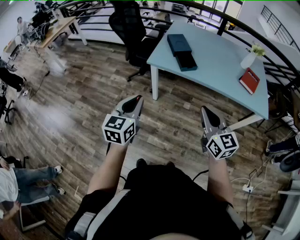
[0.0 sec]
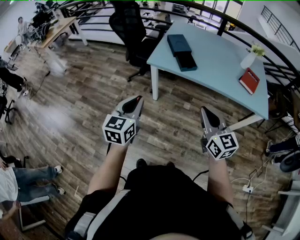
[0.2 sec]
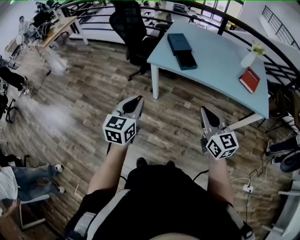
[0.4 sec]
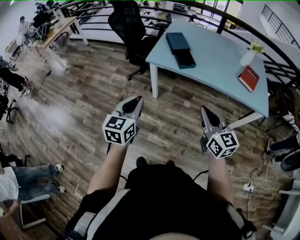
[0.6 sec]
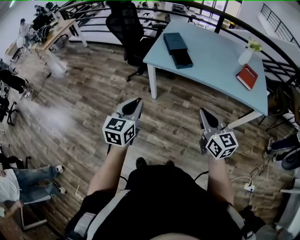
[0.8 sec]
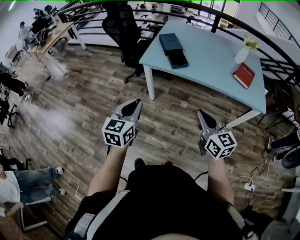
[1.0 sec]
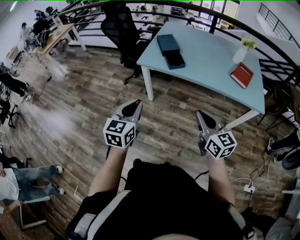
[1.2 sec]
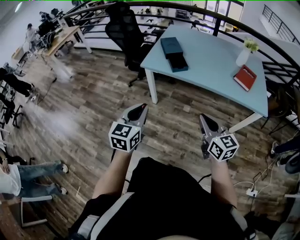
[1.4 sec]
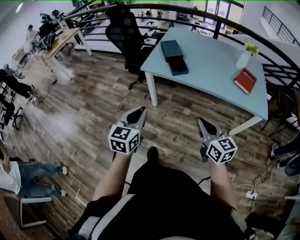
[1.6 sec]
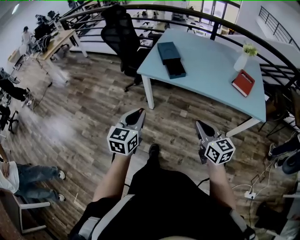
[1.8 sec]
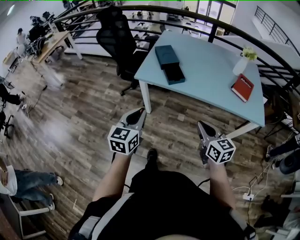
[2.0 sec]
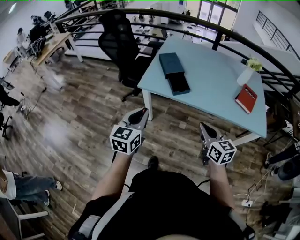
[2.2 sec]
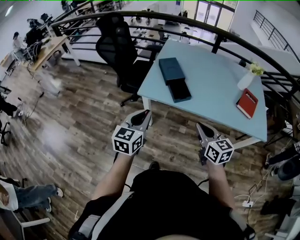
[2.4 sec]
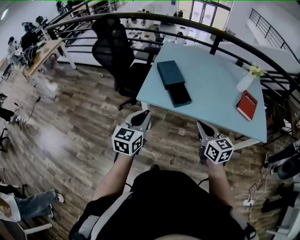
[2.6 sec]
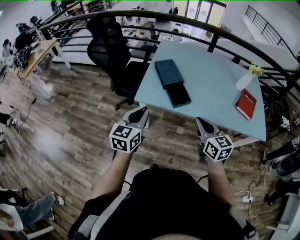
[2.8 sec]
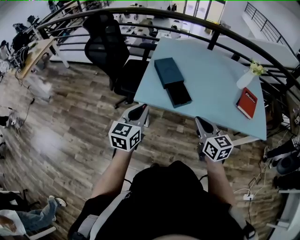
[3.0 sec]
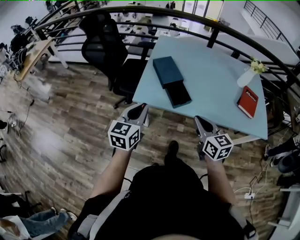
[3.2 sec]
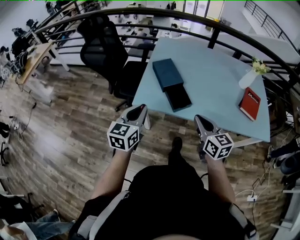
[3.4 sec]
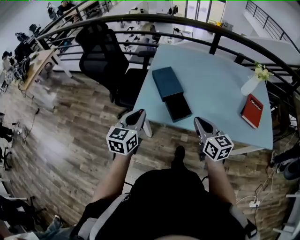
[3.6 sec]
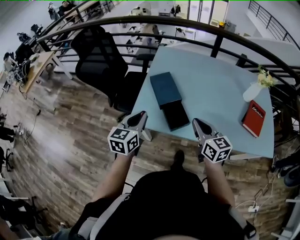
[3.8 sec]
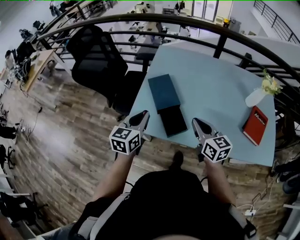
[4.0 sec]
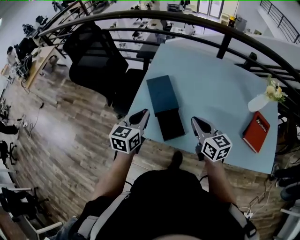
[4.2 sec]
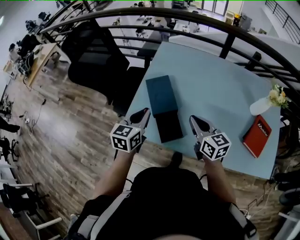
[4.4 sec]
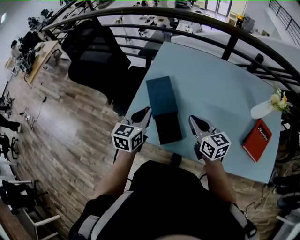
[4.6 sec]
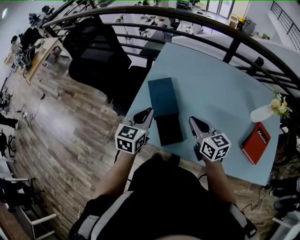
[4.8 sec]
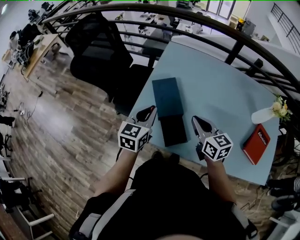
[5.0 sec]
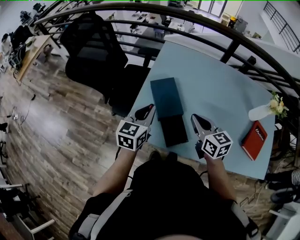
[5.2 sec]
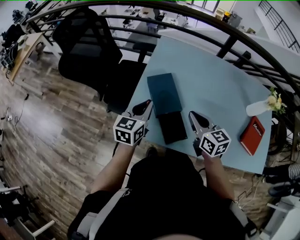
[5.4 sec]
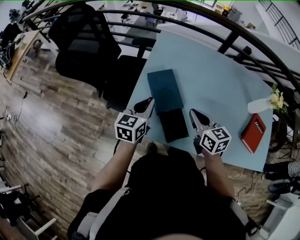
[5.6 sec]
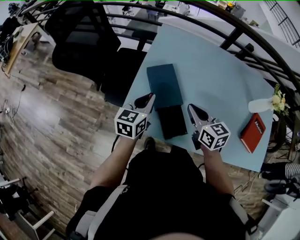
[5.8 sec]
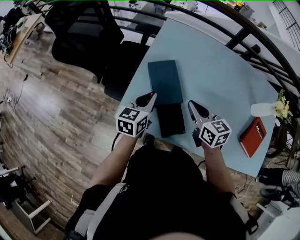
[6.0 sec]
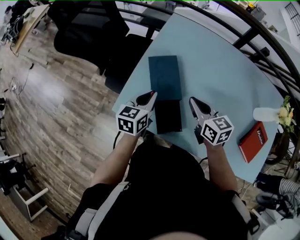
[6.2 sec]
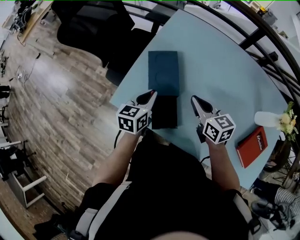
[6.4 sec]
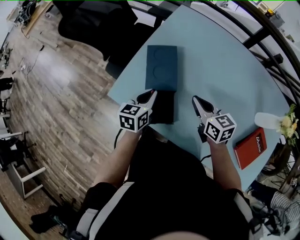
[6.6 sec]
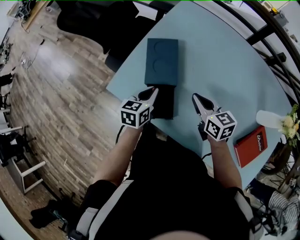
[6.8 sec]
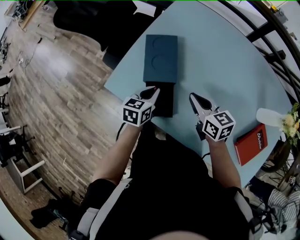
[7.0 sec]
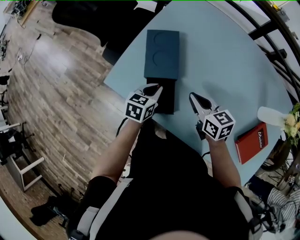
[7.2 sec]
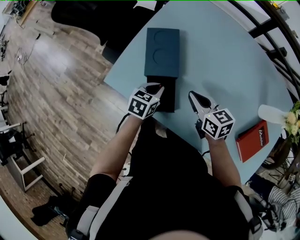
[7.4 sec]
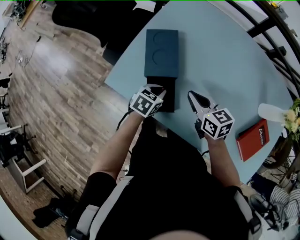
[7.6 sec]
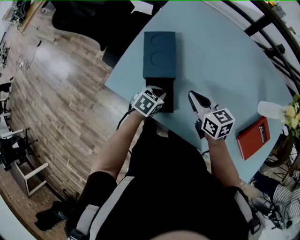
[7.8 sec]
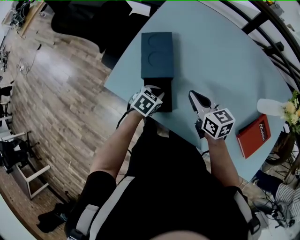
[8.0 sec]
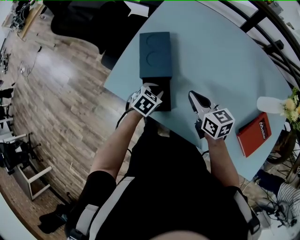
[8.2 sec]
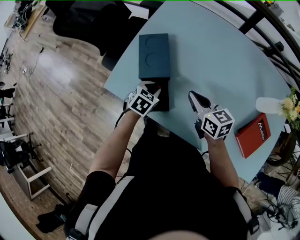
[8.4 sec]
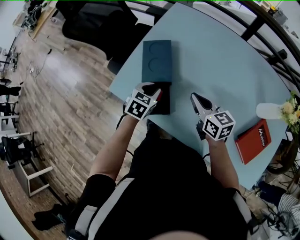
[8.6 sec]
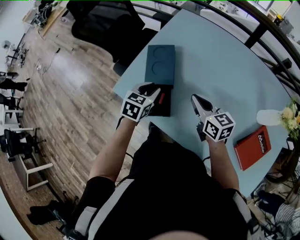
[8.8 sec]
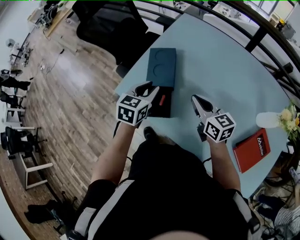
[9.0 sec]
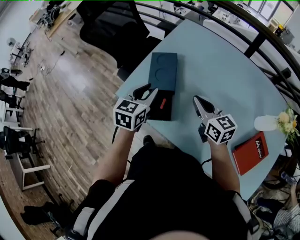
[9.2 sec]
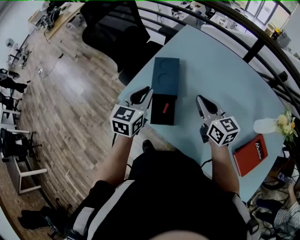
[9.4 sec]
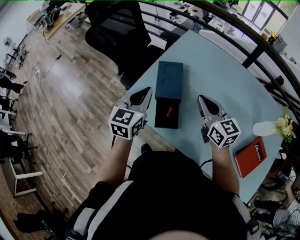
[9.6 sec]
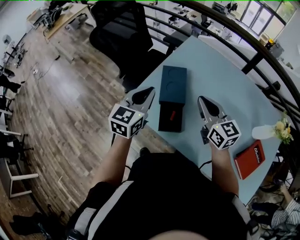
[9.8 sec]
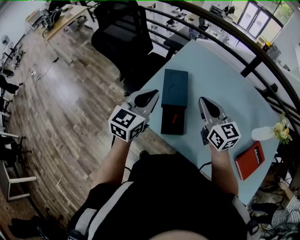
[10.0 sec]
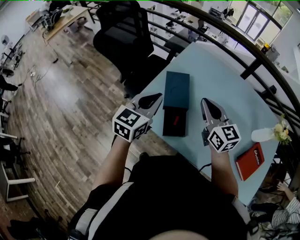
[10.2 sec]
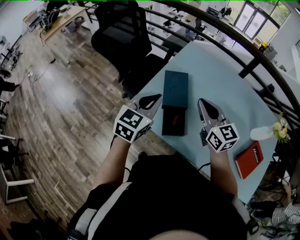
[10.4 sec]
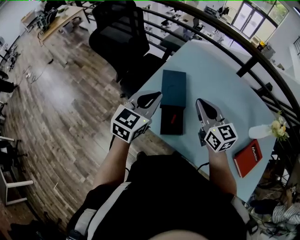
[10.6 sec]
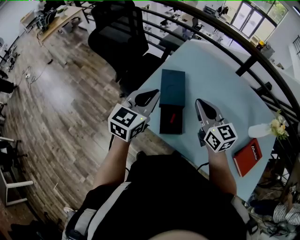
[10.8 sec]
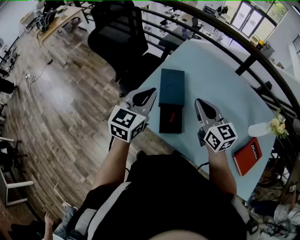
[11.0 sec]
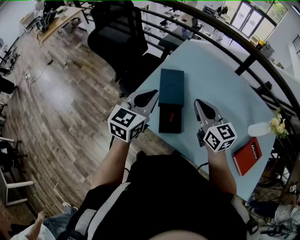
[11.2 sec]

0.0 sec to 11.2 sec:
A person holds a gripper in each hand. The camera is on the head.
0.0 sec to 1.6 sec: Both grippers move to the right, roughly 10 cm.
1.6 sec to 3.2 sec: Both grippers move forward, some 30 cm.
3.2 sec to 4.8 sec: The left gripper moves forward and to the right, roughly 25 cm. The right gripper shifts approximately 25 cm forward.
4.8 sec to 6.4 sec: The left gripper is displaced downward by about 10 cm, while the right gripper goes about 10 cm forward and downward.
6.4 sec to 8.0 sec: The right gripper shifts by roughly 5 cm. The left gripper goes about 15 cm downward, to the right and backward, and turns by some 40 degrees.
8.0 sec to 9.6 sec: The right gripper shifts roughly 15 cm upward, and rotates approximately 20 degrees, while the left gripper shifts some 25 cm upward, and angles its fingers upward, by roughly 40 degrees.
9.6 sec to 11.2 sec: The right gripper heads to the left, covering some 5 cm.

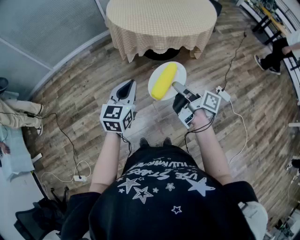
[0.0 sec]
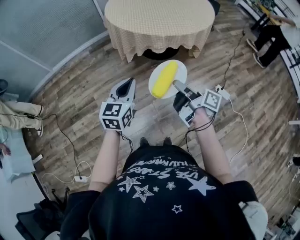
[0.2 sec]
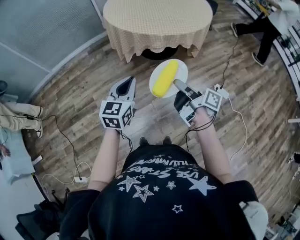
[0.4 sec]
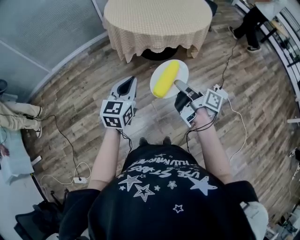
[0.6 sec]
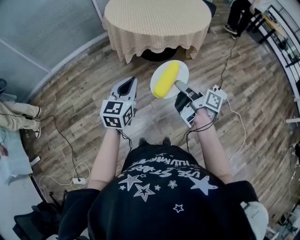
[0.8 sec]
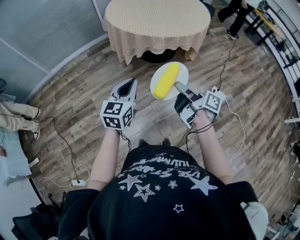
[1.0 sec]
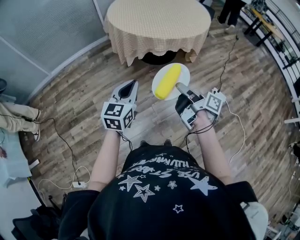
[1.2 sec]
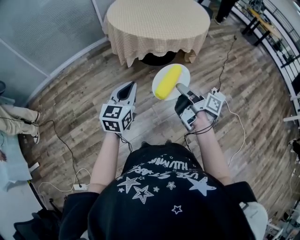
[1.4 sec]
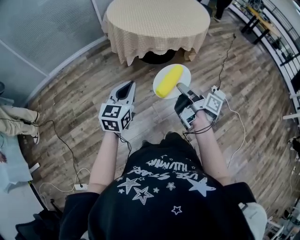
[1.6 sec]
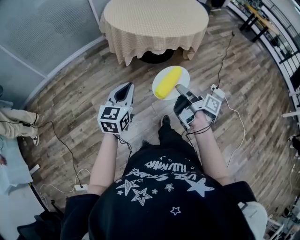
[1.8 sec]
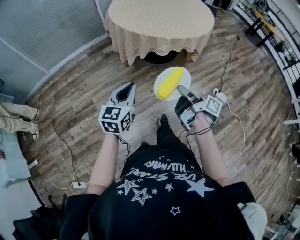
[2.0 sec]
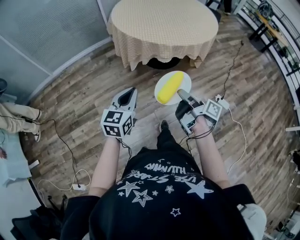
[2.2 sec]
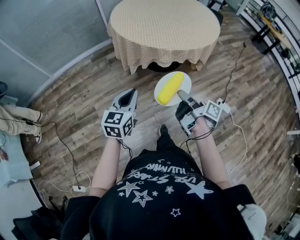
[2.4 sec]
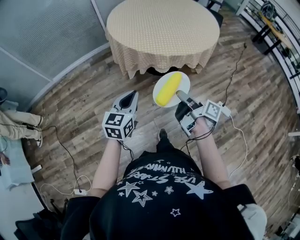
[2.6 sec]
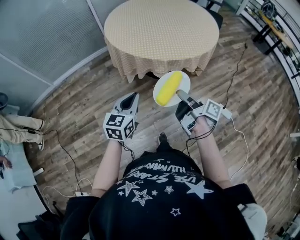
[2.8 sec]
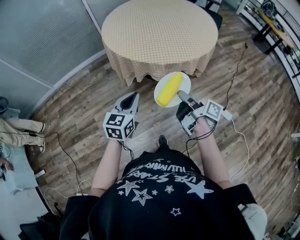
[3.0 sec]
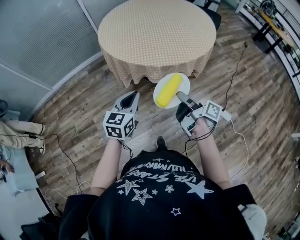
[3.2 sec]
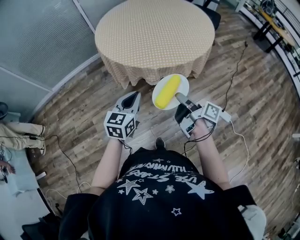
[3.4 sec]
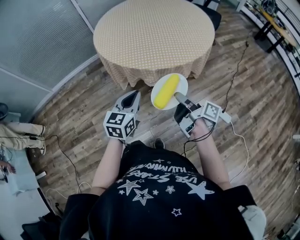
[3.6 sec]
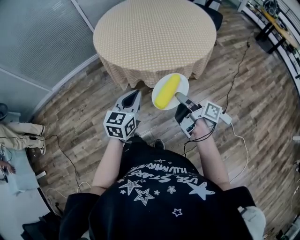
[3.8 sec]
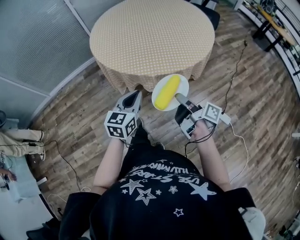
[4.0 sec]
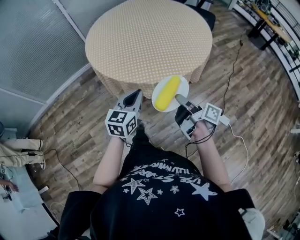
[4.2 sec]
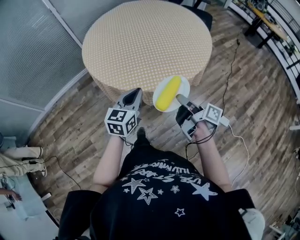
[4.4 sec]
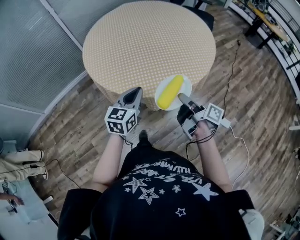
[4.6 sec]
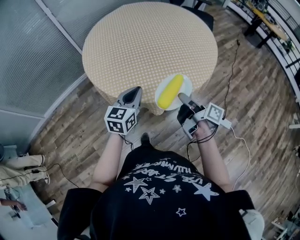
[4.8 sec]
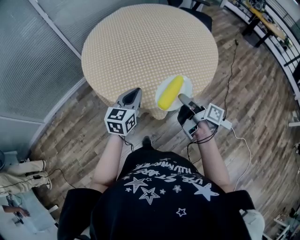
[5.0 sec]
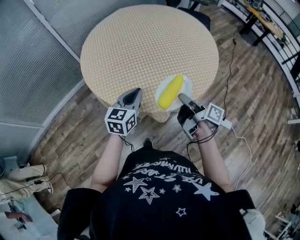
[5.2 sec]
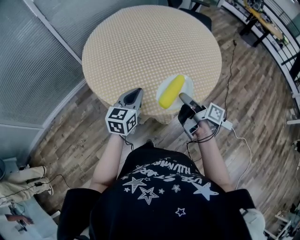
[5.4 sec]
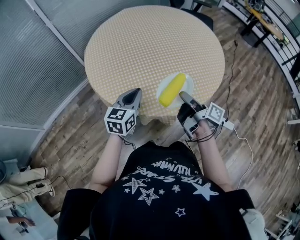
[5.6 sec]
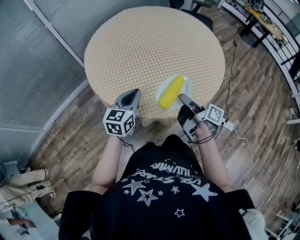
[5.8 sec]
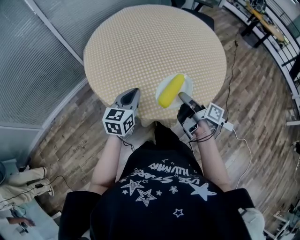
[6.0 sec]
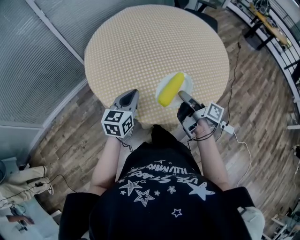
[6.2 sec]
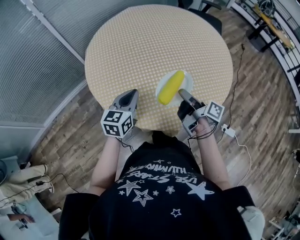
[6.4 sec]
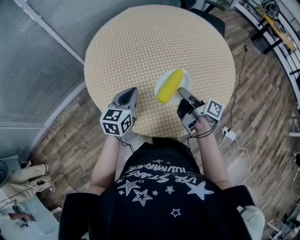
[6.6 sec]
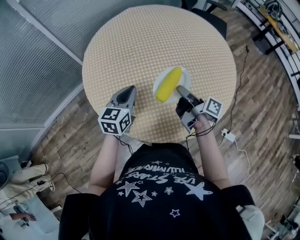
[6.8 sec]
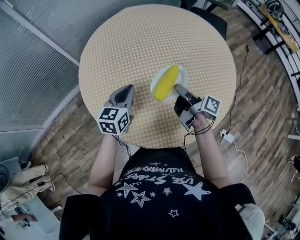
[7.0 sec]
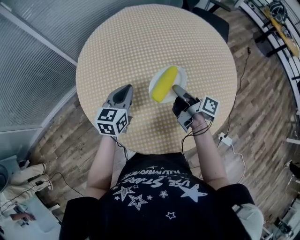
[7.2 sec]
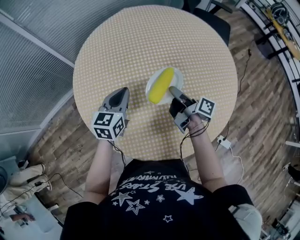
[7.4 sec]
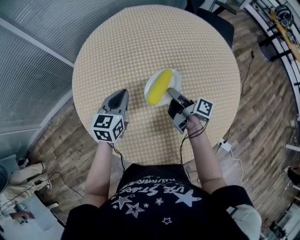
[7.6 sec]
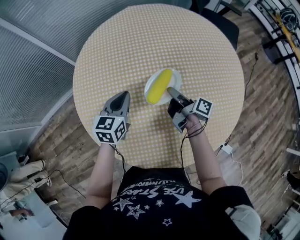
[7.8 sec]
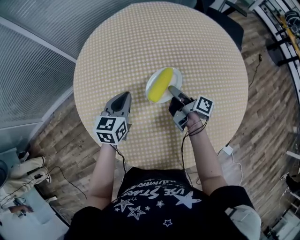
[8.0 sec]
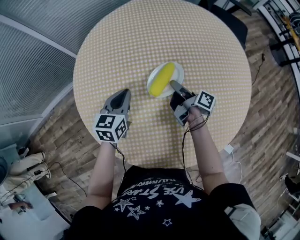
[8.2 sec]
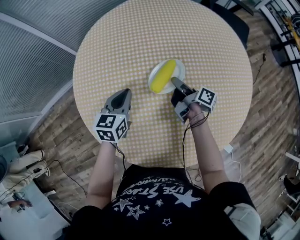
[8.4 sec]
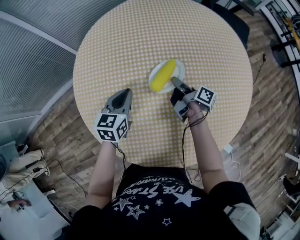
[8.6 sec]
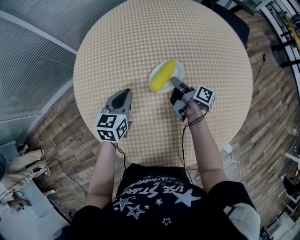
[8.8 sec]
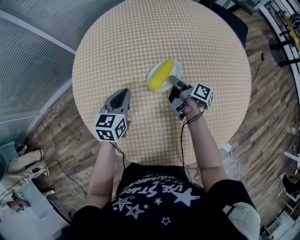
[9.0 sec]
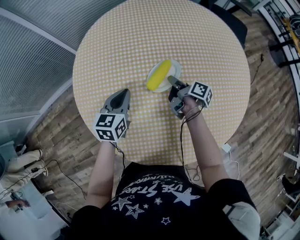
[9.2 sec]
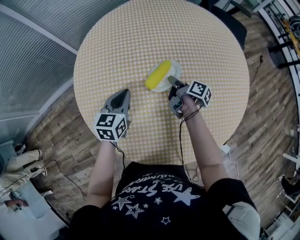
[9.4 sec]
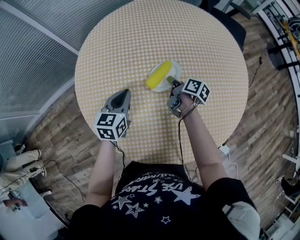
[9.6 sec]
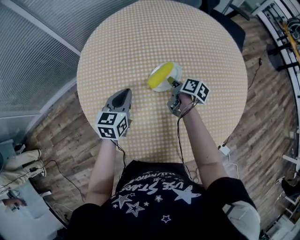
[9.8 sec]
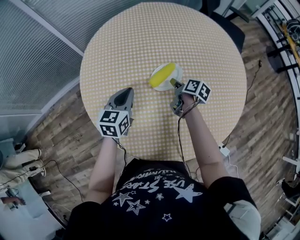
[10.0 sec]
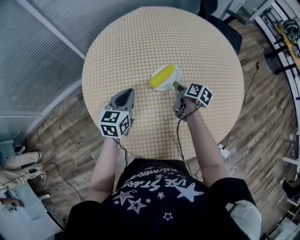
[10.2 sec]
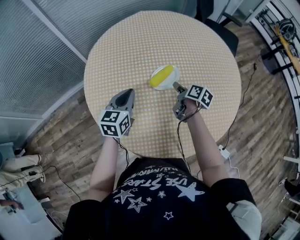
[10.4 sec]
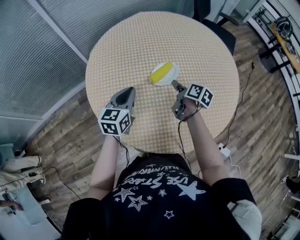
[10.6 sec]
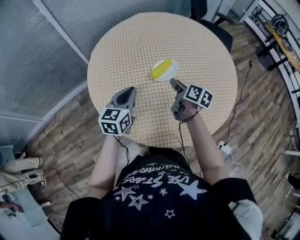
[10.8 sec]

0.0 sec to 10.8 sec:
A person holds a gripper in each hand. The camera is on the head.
0.0 sec to 1.6 sec: The left gripper shifts by approximately 5 cm.
1.6 sec to 3.0 sec: The left gripper moves about 20 cm.
3.0 sec to 4.6 sec: The left gripper ends up roughly 25 cm from where it was.
4.6 sec to 6.2 sec: The left gripper ends up roughly 20 cm from where it was.
6.2 sec to 7.8 sec: The left gripper changes place by some 25 cm.
9.2 sec to 10.8 sec: The left gripper shifts by roughly 15 cm.

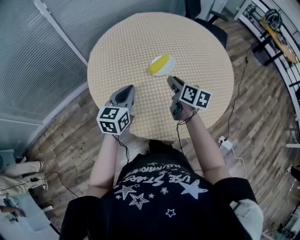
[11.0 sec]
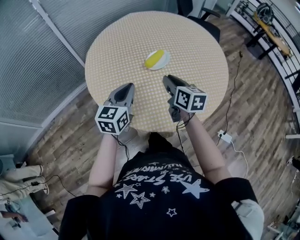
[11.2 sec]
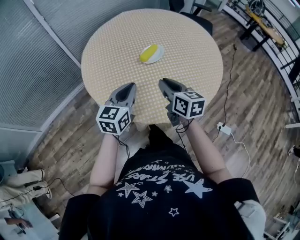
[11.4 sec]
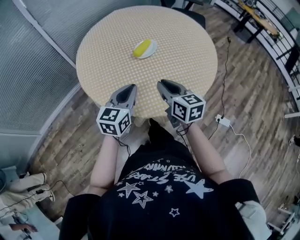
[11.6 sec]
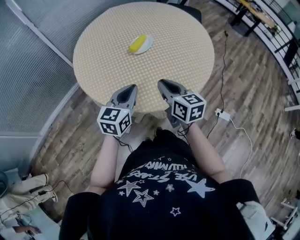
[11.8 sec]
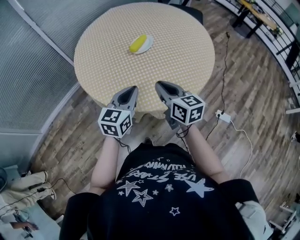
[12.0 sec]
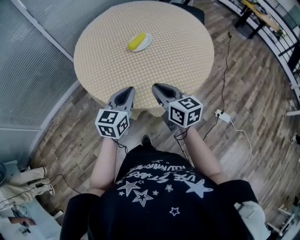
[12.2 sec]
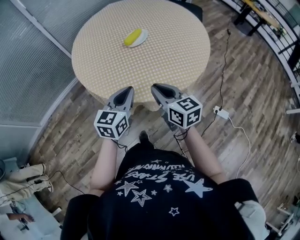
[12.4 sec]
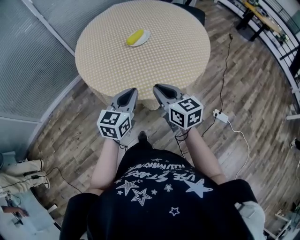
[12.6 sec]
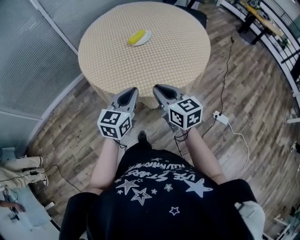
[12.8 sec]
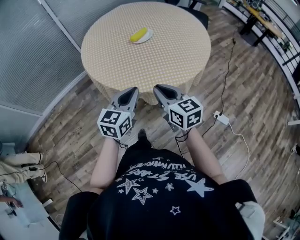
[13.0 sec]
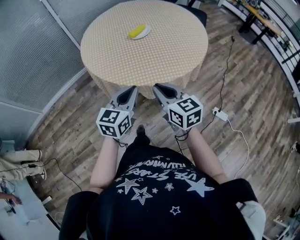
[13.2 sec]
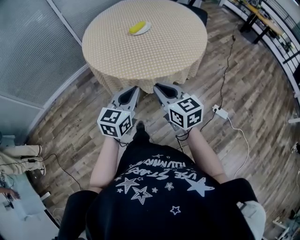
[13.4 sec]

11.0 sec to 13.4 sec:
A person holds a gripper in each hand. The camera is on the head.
11.0 sec to 12.2 sec: The left gripper changes place by approximately 20 cm.
12.2 sec to 13.4 sec: The left gripper ends up approximately 20 cm from where it was.
